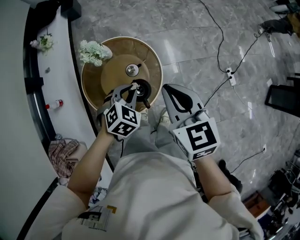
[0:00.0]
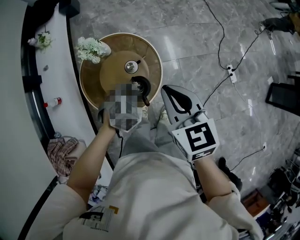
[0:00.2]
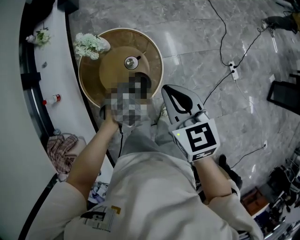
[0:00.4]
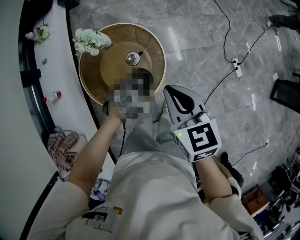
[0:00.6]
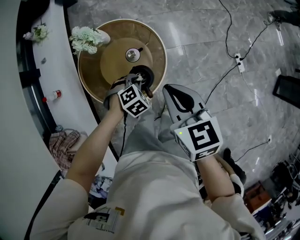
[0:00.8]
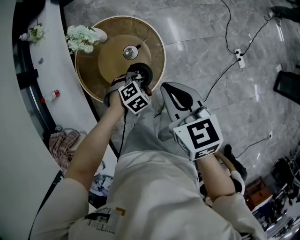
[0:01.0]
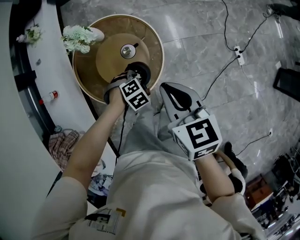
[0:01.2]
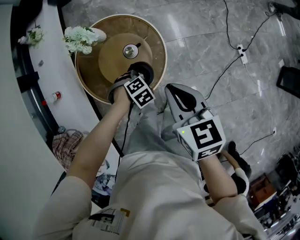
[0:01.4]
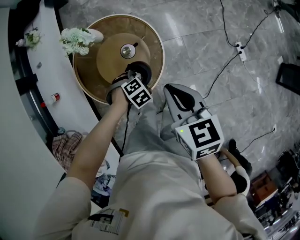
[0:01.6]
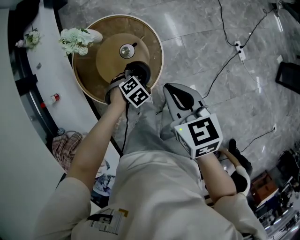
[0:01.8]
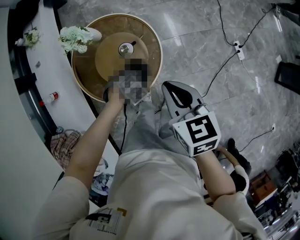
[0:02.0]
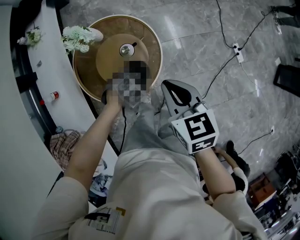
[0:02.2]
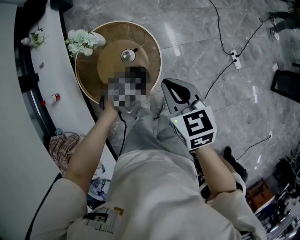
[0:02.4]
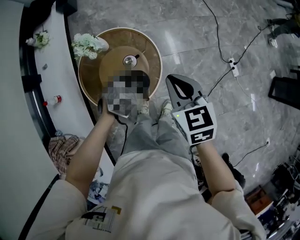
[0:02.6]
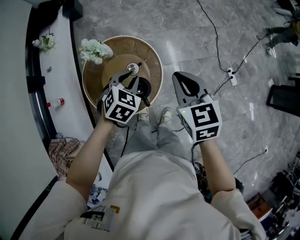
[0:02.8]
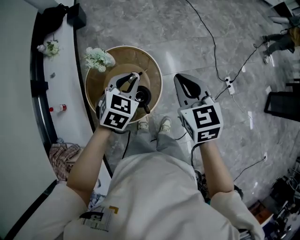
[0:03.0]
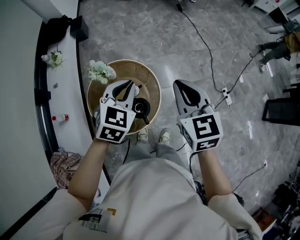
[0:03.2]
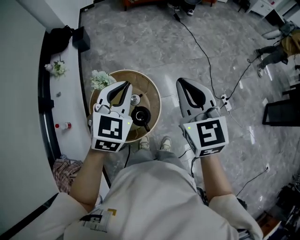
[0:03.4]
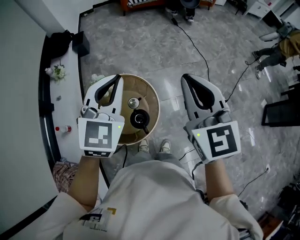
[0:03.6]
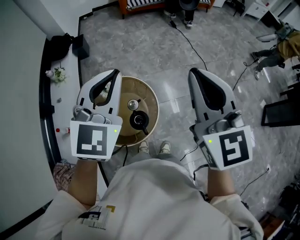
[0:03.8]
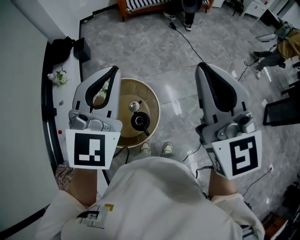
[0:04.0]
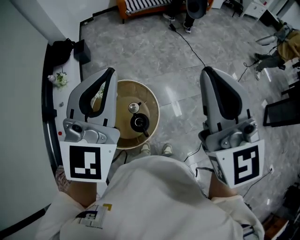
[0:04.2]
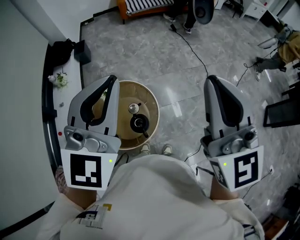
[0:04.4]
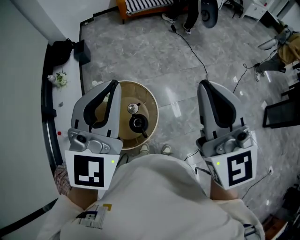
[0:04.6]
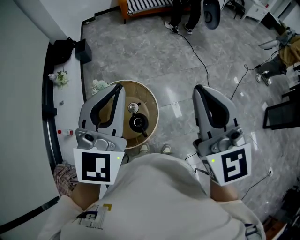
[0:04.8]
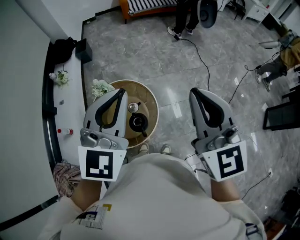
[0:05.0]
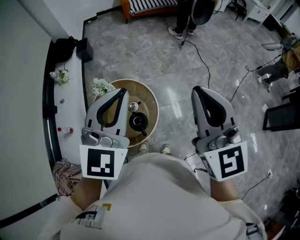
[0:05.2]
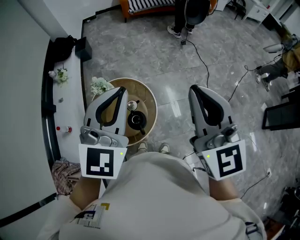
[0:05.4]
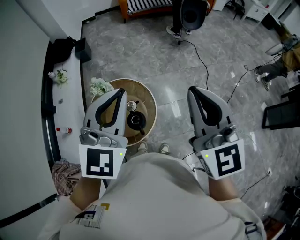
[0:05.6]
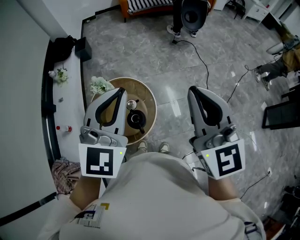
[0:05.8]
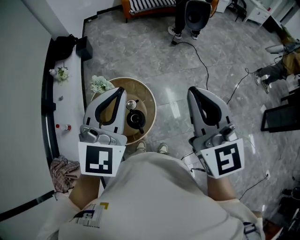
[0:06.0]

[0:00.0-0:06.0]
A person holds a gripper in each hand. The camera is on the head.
0:00.0 to 0:01.6: The right gripper is displaced downward by roughly 10 cm. Meanwhile the left gripper heads downward, covering some 20 cm, and changes its angle by roughly 30 degrees.
0:01.6 to 0:03.0: The right gripper shifts some 15 cm upward, and turns by roughly 20 degrees. Meanwhile the left gripper is displaced upward by about 30 cm, and points its fingers about 40 degrees further upward.
0:03.0 to 0:04.4: The two grippers go some 35 cm upward. The left gripper tips its fingers upward by approximately 40 degrees. Meanwhile the right gripper points its fingers approximately 40 degrees further upward.
0:04.4 to 0:06.0: Both grippers travel together downward, some 5 cm.

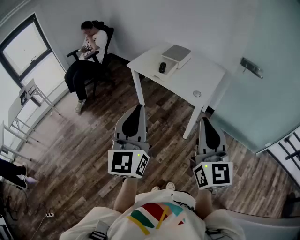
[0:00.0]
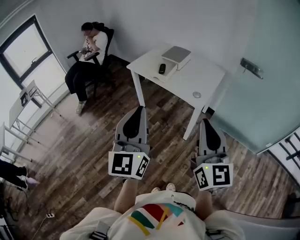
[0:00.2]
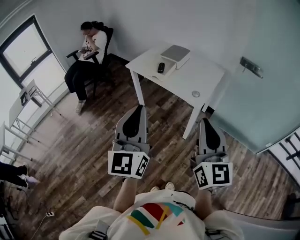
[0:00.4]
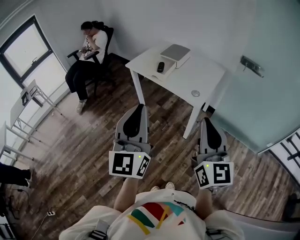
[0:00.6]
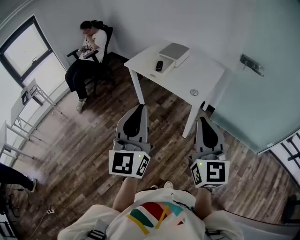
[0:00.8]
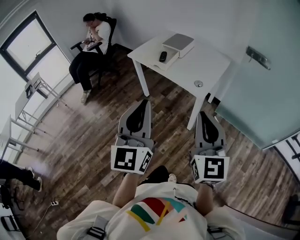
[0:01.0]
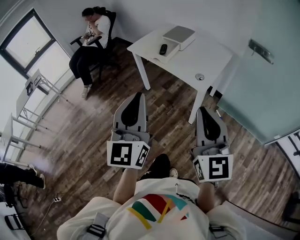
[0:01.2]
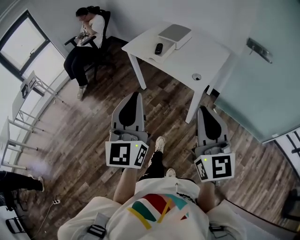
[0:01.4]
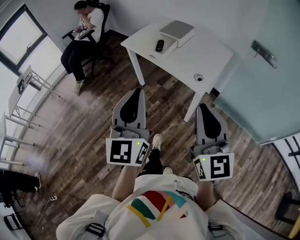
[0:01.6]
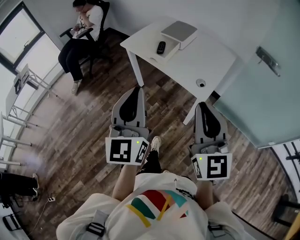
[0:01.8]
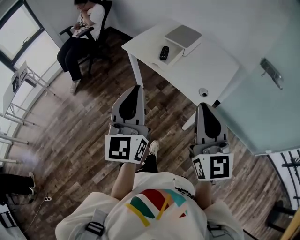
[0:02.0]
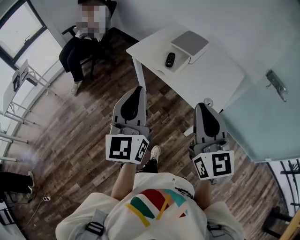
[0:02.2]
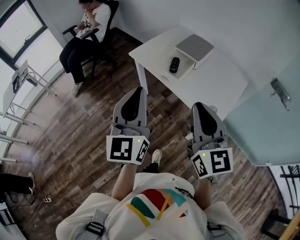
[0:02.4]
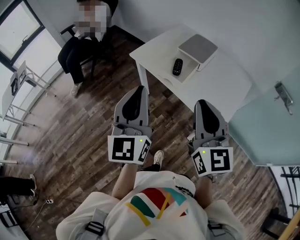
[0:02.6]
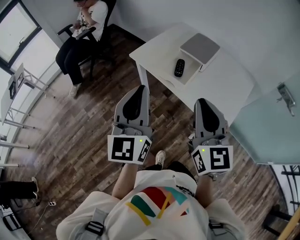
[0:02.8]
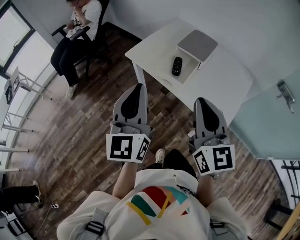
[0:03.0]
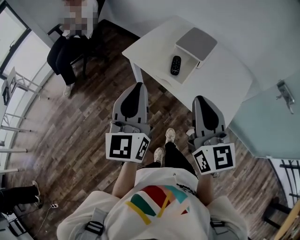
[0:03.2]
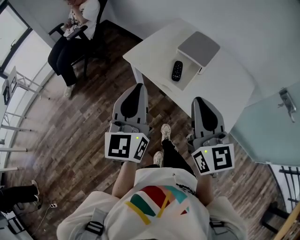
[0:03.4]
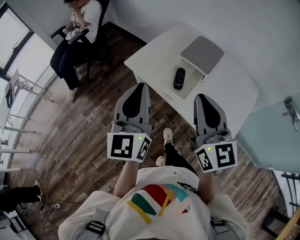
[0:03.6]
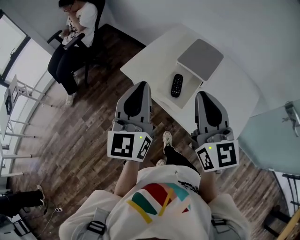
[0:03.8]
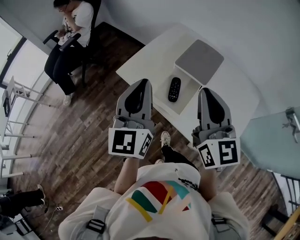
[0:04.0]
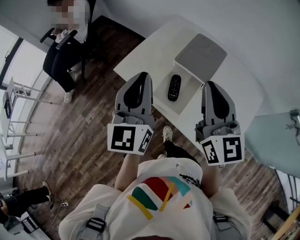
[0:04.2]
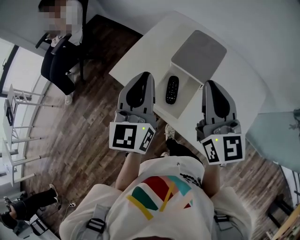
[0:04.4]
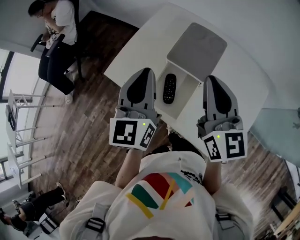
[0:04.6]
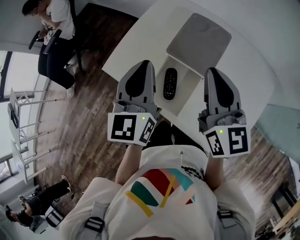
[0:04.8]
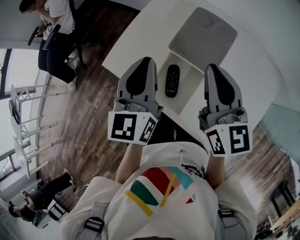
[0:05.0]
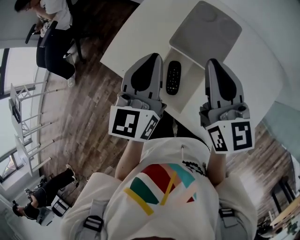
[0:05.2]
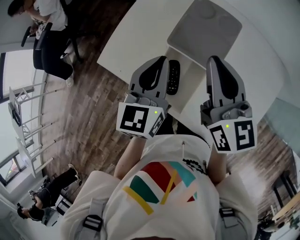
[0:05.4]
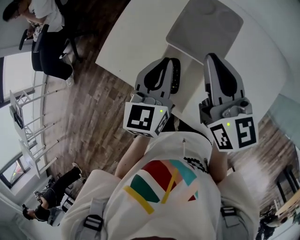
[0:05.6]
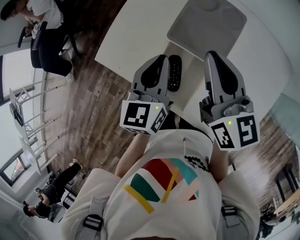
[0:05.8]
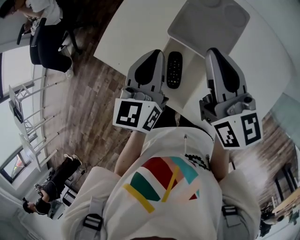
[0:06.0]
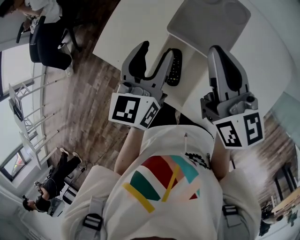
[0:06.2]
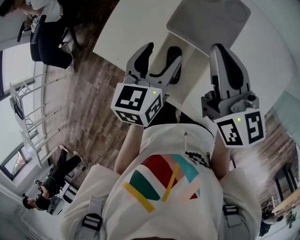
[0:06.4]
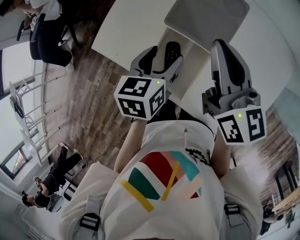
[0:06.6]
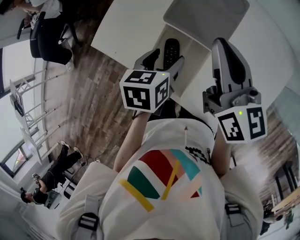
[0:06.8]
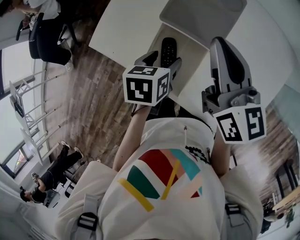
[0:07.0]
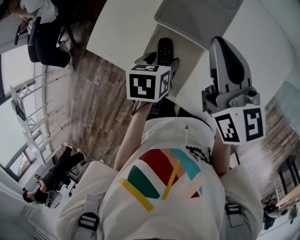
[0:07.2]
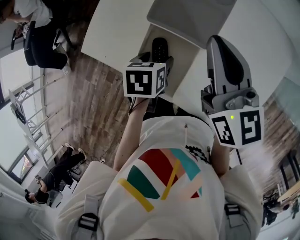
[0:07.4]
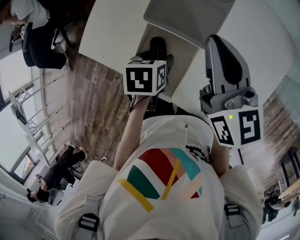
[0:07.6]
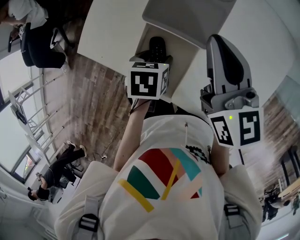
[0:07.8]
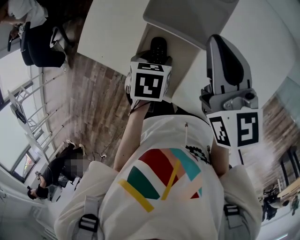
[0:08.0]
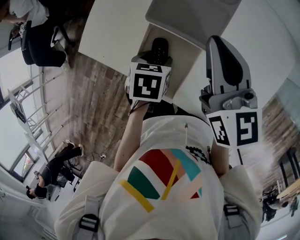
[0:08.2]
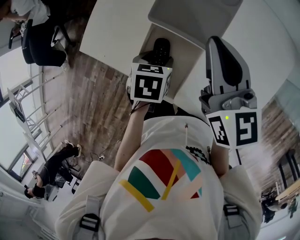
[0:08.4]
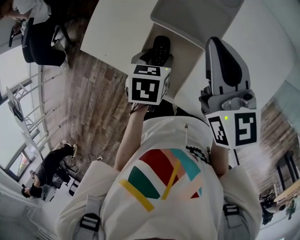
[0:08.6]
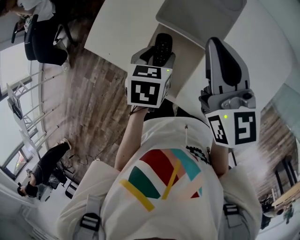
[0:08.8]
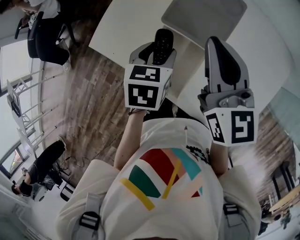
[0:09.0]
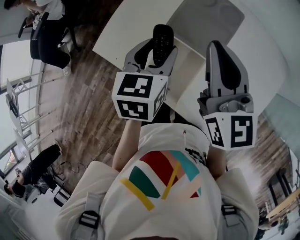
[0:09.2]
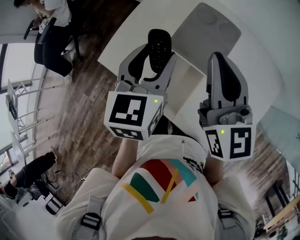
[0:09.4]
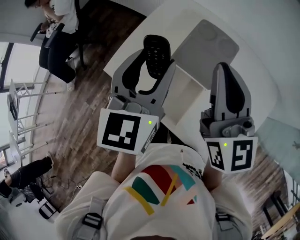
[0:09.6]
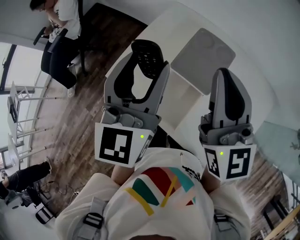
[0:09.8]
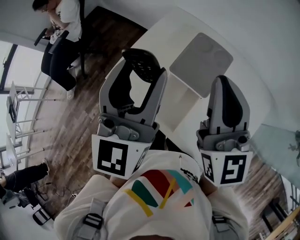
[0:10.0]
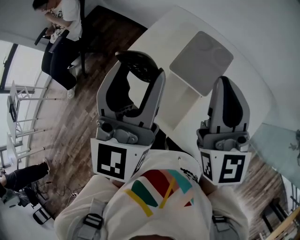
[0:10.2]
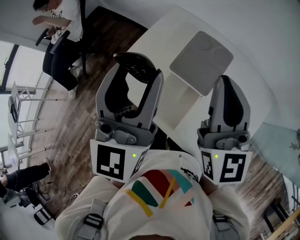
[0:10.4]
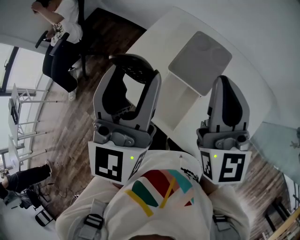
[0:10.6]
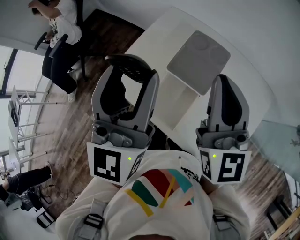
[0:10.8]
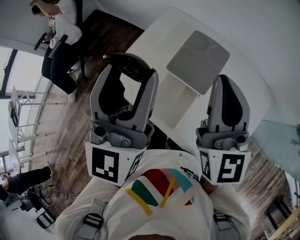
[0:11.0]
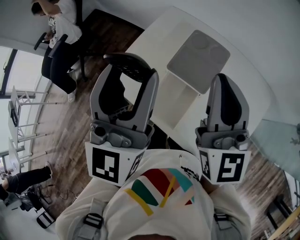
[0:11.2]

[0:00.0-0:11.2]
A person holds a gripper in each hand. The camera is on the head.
0:00.0 to 0:01.6: The left gripper is displaced forward and to the right by about 10 cm. The right gripper shifts about 10 cm forward.
0:01.6 to 0:03.2: The grippers both shift forward by approximately 35 cm.
0:03.2 to 0:04.8: Both grippers travel together forward, roughly 30 cm.
0:04.8 to 0:06.4: The left gripper heads downward, covering some 15 cm, turns by about 30 degrees, and opens its fingers. Meanwhile the right gripper goes approximately 5 cm downward.
0:06.4 to 0:08.0: The left gripper is displaced downward by roughly 15 cm, and tilts its fingers some 40 degrees downward.
0:08.0 to 0:09.6: The left gripper travels upward by approximately 30 cm, and tilts its fingers some 60 degrees upward. Meanwhile the right gripper shifts some 15 cm upward.
0:09.6 to 0:11.2: The left gripper is displaced upward and backward by approximately 10 cm, and turns by roughly 20 degrees; the right gripper changes place by some 5 cm.

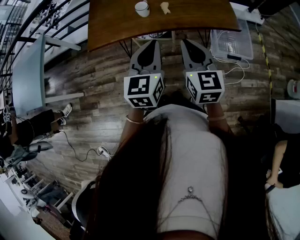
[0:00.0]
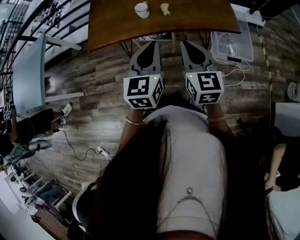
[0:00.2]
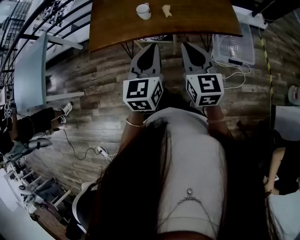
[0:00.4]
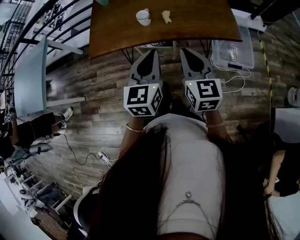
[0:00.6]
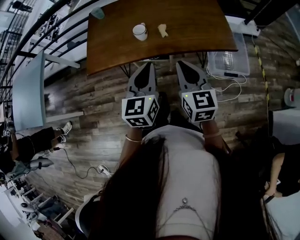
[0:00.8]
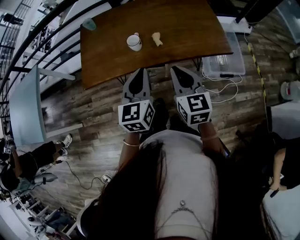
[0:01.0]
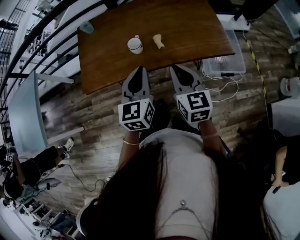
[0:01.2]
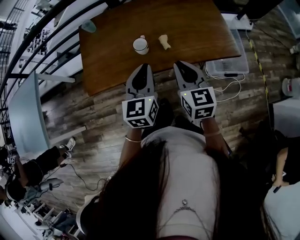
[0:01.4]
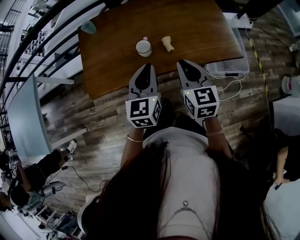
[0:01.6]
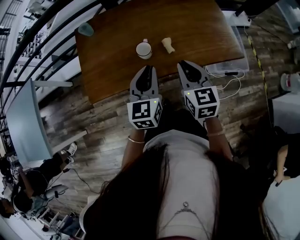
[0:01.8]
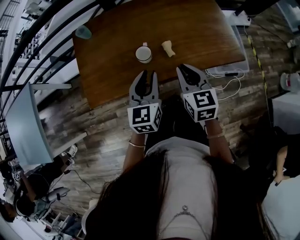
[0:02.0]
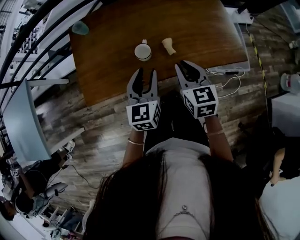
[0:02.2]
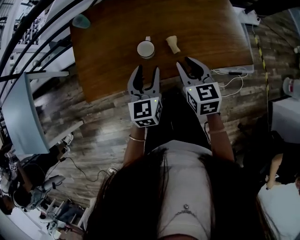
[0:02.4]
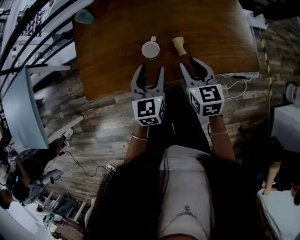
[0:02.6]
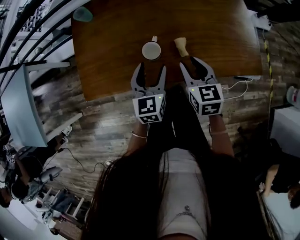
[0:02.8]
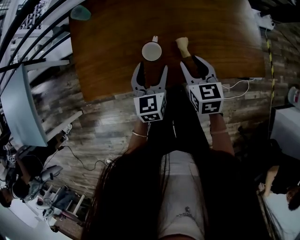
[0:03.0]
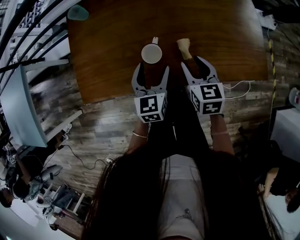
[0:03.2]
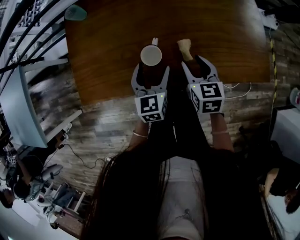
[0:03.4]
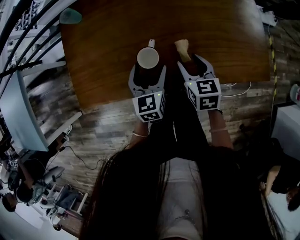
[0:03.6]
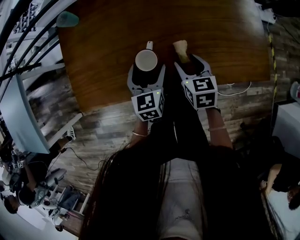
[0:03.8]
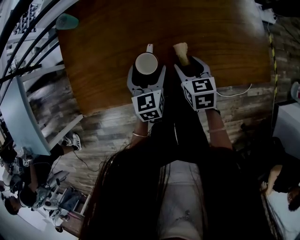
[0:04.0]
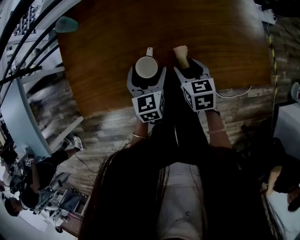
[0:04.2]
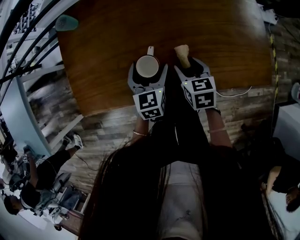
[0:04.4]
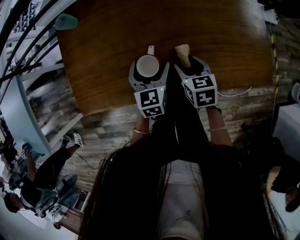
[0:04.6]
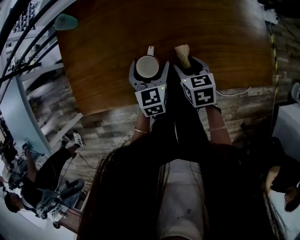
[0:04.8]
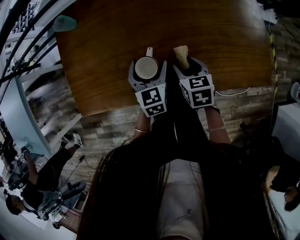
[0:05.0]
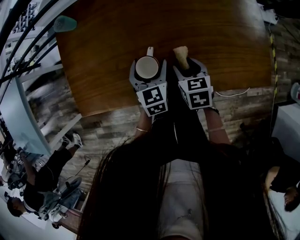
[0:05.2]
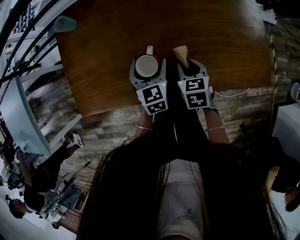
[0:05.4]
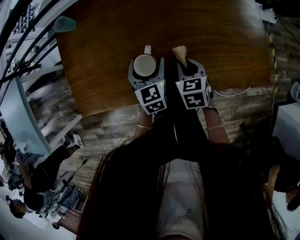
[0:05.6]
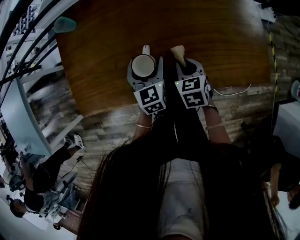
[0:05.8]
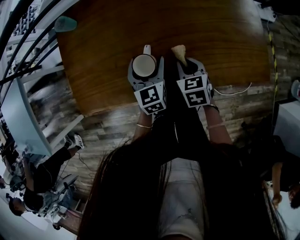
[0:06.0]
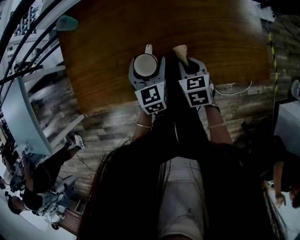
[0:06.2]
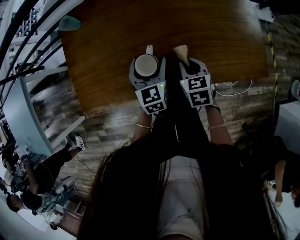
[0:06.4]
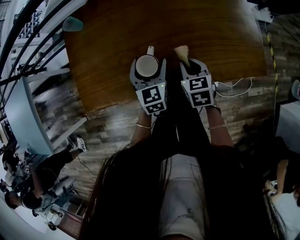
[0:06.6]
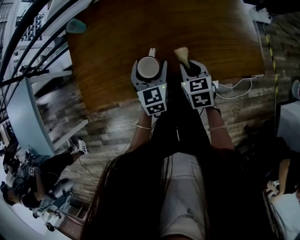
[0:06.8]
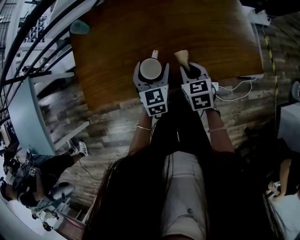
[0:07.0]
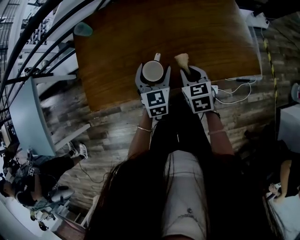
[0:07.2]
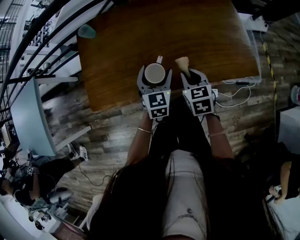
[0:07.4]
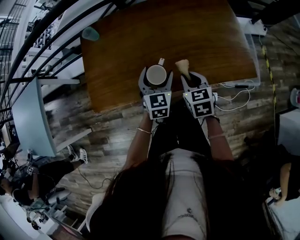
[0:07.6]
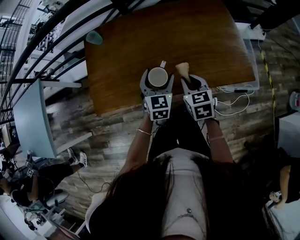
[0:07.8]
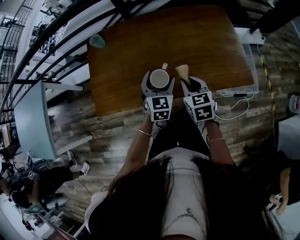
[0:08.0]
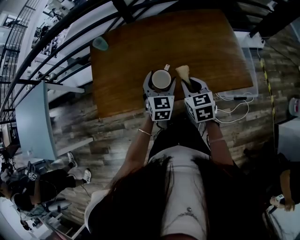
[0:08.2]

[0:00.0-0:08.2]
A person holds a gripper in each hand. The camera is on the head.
0:00.0 to 0:01.6: Both grippers move forward, roughly 20 cm.
0:01.6 to 0:03.2: The grippers both shift downward and forward by some 20 cm. The right gripper opens its fingers; the left gripper opens up.
0:03.2 to 0:05.0: The left gripper heads downward and forward, covering approximately 10 cm. The right gripper shifts some 10 cm downward.
0:05.0 to 0:06.6: The right gripper closes up.
0:06.6 to 0:08.2: The left gripper moves upward, roughly 10 cm; the right gripper moves upward, some 10 cm.
